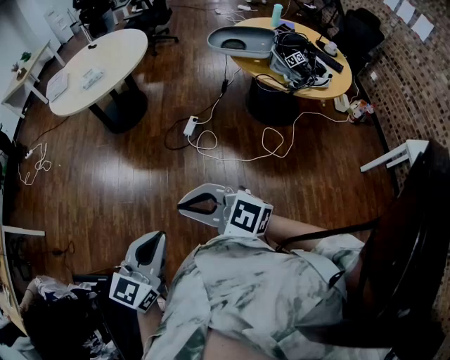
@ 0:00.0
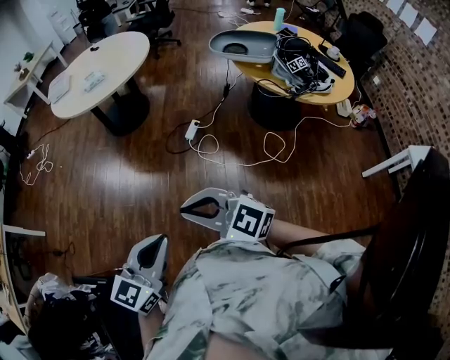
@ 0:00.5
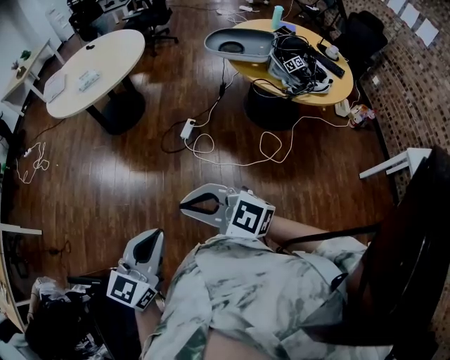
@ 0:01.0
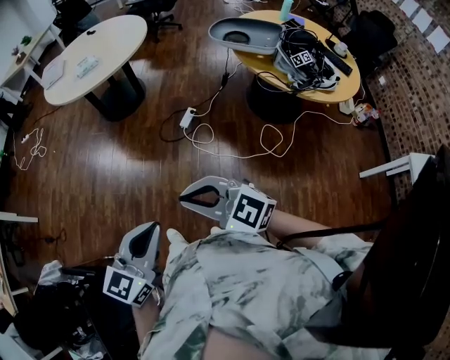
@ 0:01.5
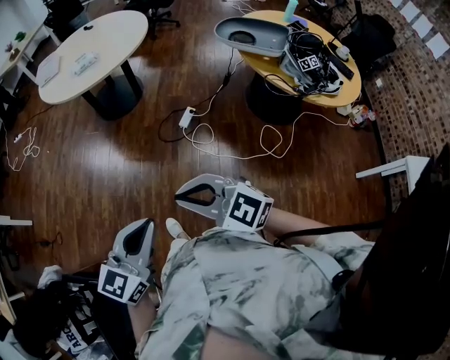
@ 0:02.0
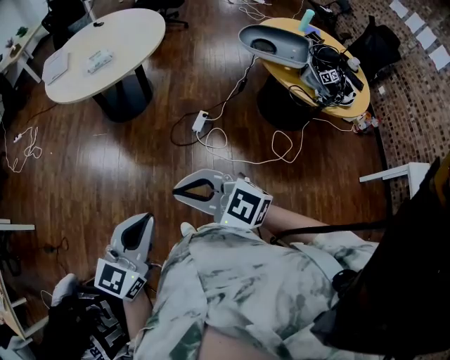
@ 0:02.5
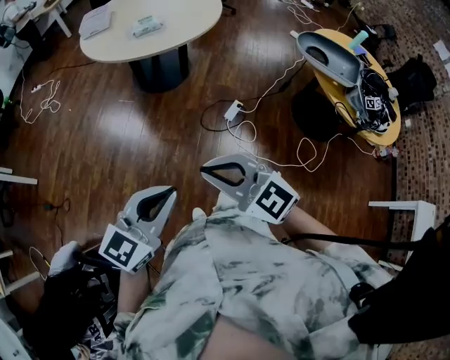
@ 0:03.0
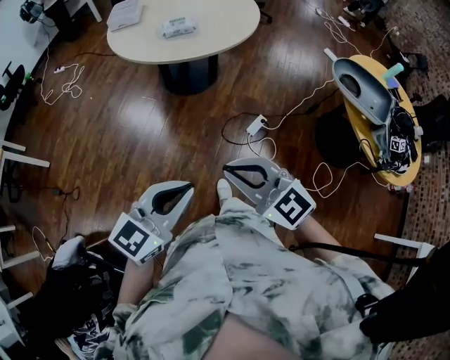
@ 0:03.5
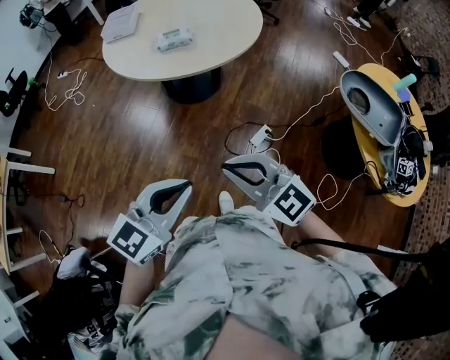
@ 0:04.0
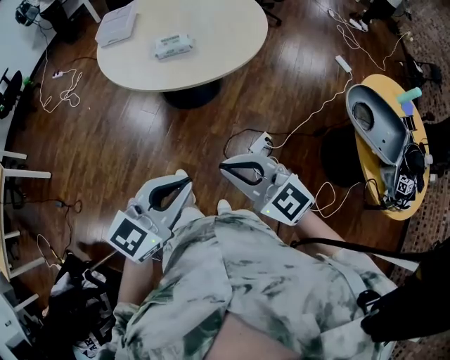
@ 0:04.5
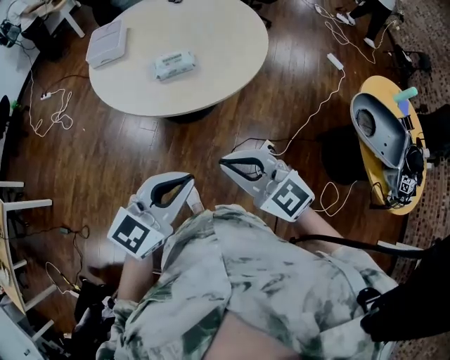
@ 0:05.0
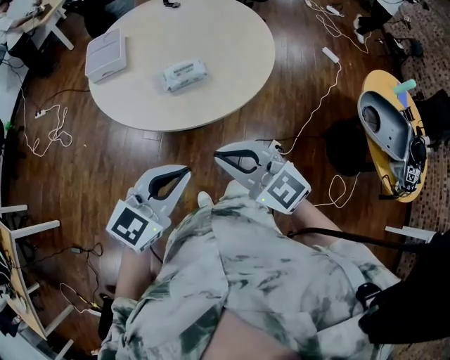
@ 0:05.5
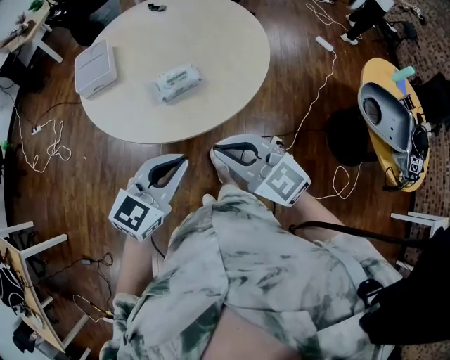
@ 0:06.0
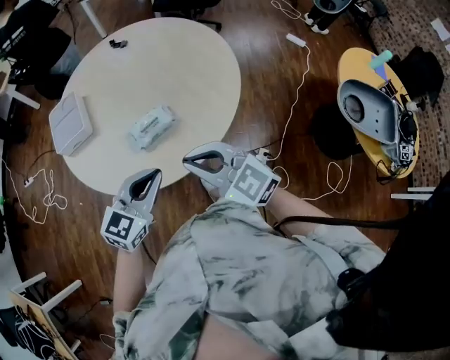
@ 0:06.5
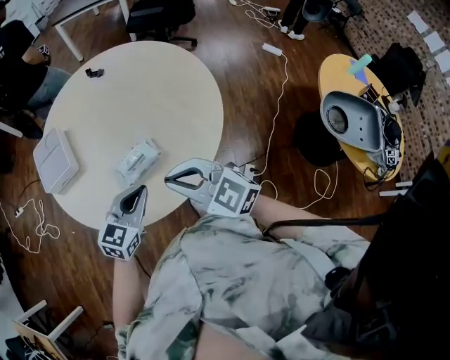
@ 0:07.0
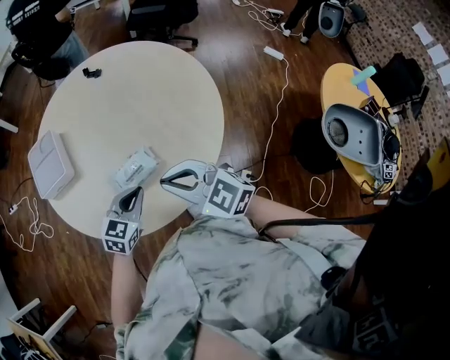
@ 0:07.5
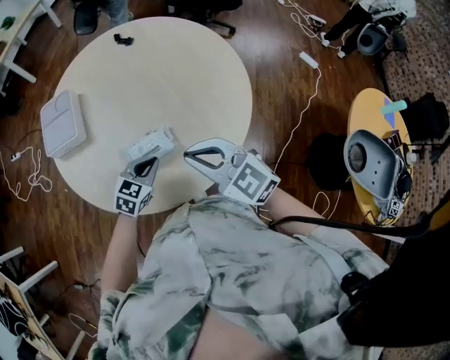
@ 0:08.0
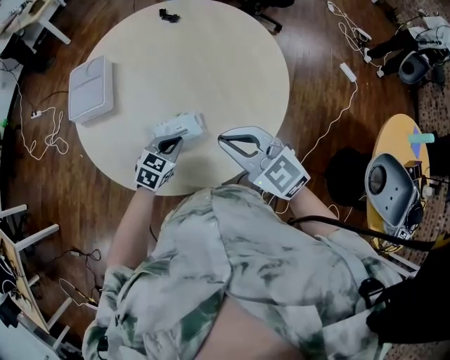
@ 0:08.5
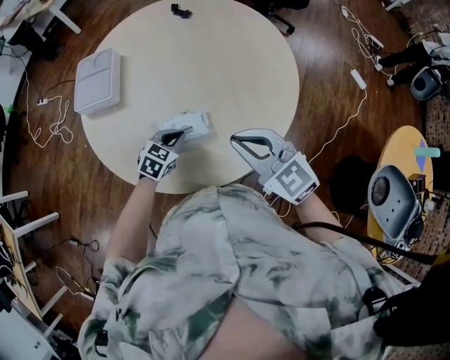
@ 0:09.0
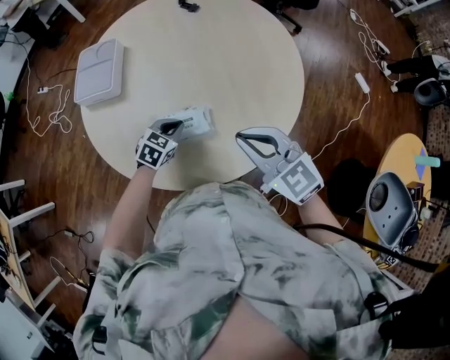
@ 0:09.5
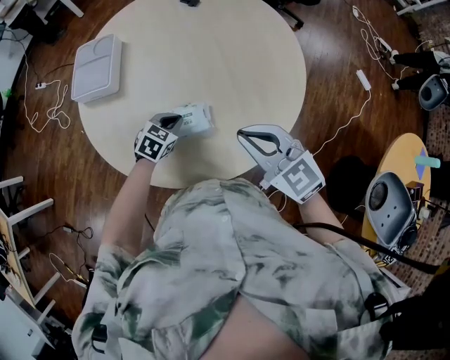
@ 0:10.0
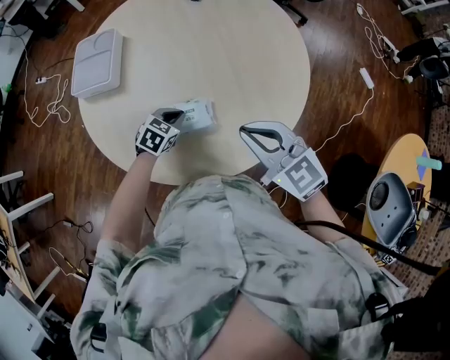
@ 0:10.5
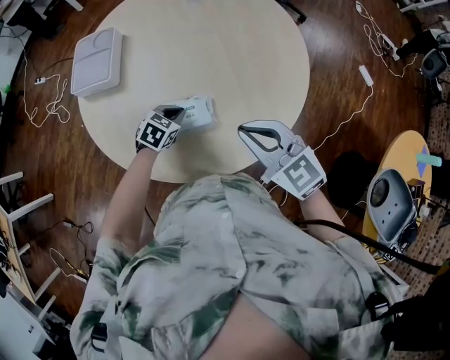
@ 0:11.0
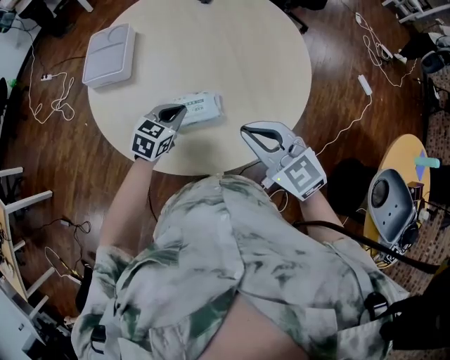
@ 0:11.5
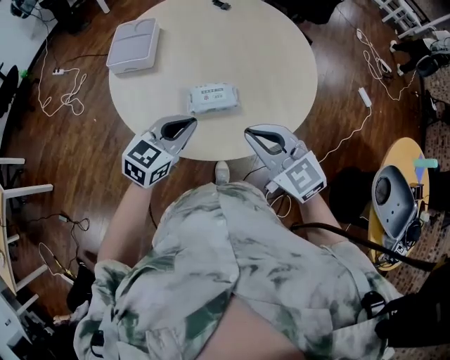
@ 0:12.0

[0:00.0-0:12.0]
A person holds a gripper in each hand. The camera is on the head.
0:00.0 to 0:02.0: Both grippers move forward, some 10 cm.
0:02.0 to 0:04.0: Both grippers travel together forward, roughly 35 cm.
0:04.0 to 0:06.0: The two grippers go about 40 cm forward and to the left.
0:06.0 to 0:08.0: The right gripper is displaced forward by roughly 25 cm. Meanwhile the left gripper travels forward and downward by roughly 35 cm, and turns by approximately 20 degrees.
0:08.0 to 0:10.0: The left gripper shifts some 10 cm forward and downward. The right gripper shifts by about 5 cm.
0:10.0 to 0:12.0: The left gripper shifts roughly 25 cm upward and backward, and turns by some 30 degrees. Meanwhile the right gripper goes about 15 cm backward and to the left.

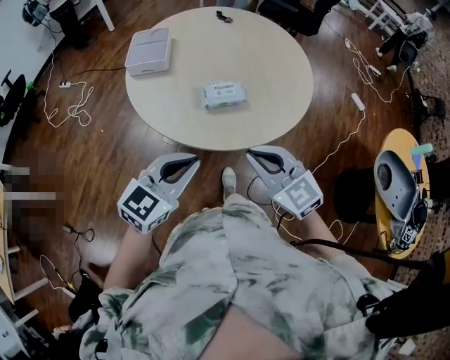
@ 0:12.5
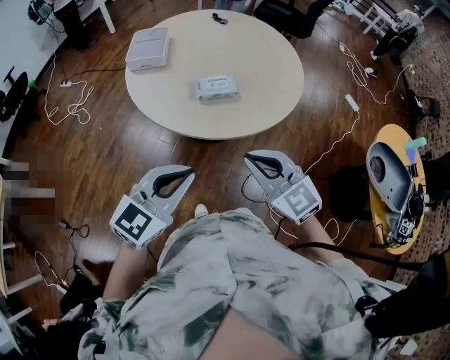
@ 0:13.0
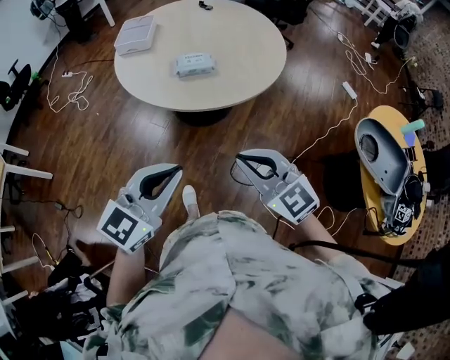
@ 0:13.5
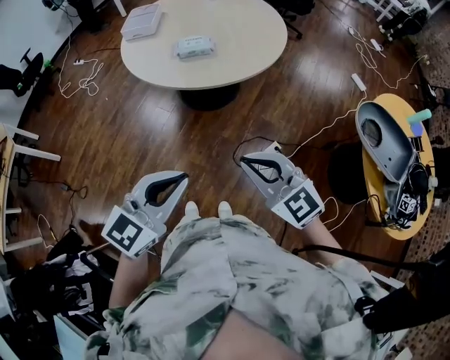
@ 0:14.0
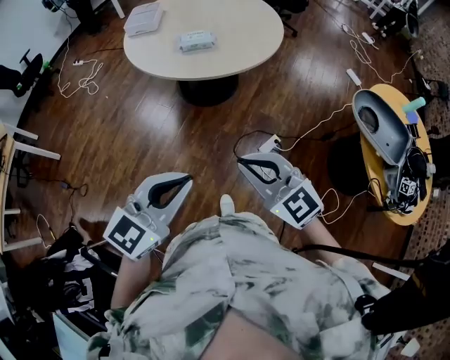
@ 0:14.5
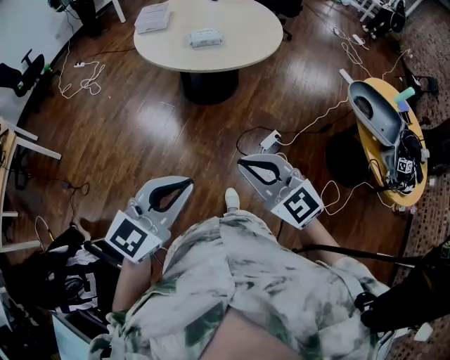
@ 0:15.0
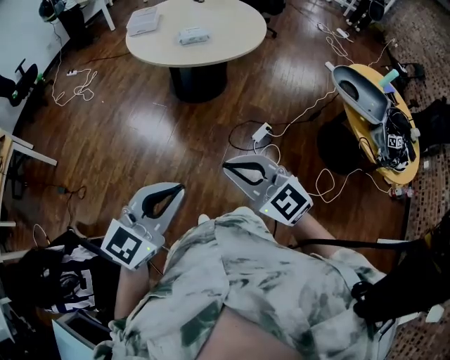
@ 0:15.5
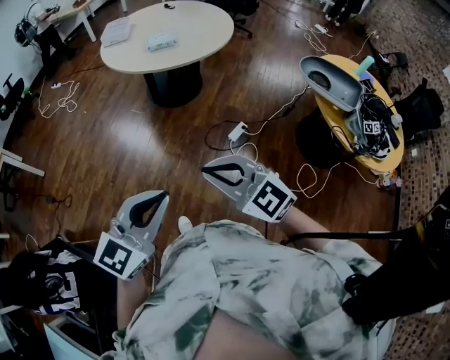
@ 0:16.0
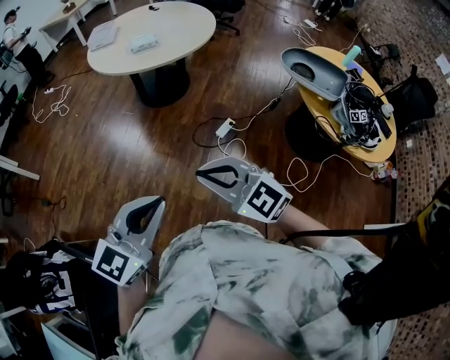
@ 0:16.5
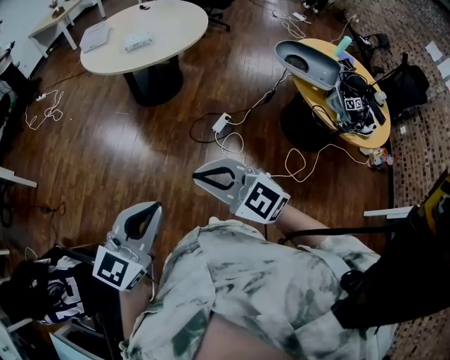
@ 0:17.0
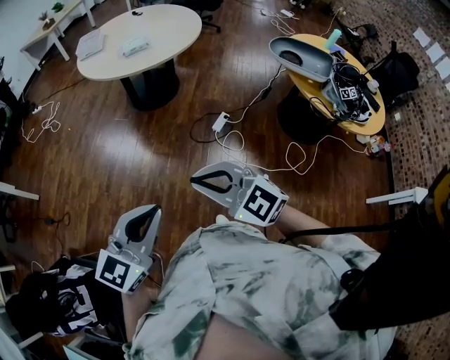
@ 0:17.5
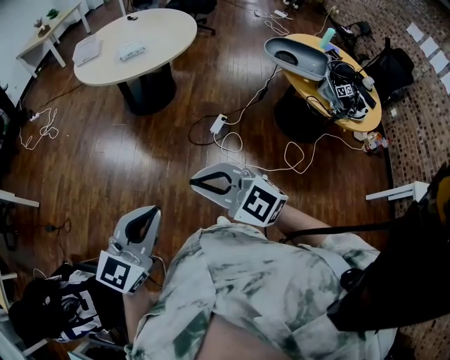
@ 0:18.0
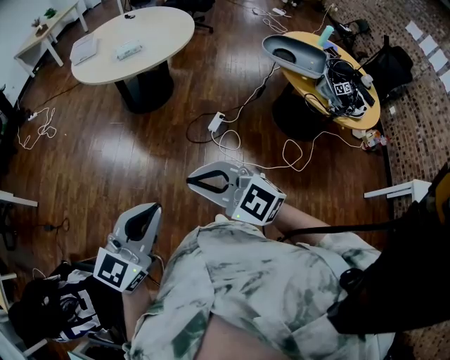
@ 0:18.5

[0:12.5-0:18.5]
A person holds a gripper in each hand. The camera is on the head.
0:12.5 to 0:14.5: The left gripper heads backward and to the right, covering some 40 cm. Meanwhile the right gripper heads backward, covering some 35 cm.
0:14.5 to 0:16.5: The two grippers go roughly 30 cm backward.
0:16.5 to 0:18.5: Both grippers travel together to the left, about 10 cm.

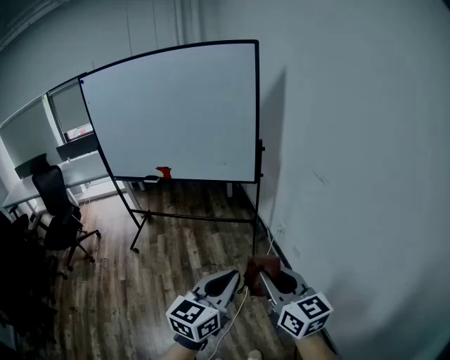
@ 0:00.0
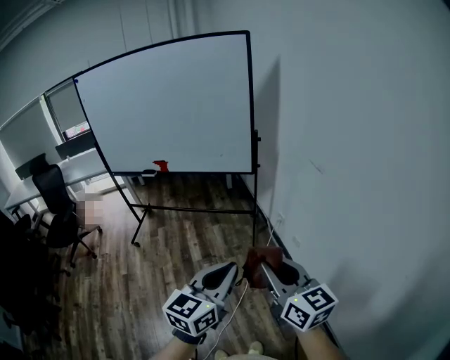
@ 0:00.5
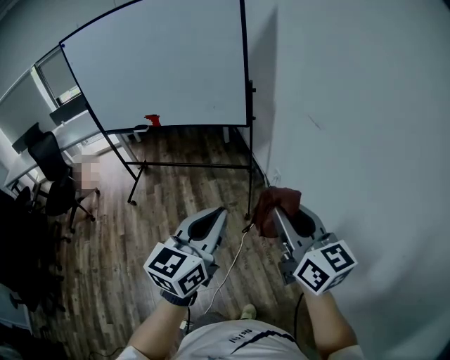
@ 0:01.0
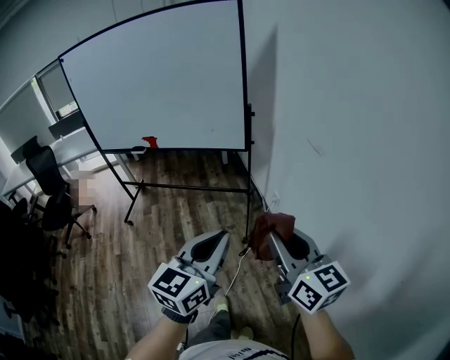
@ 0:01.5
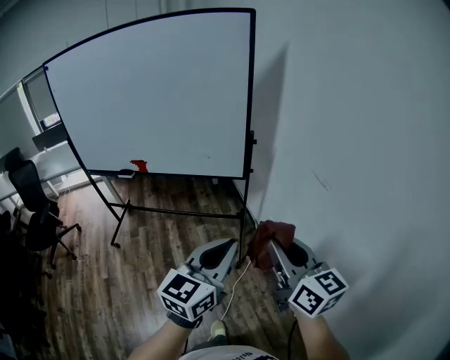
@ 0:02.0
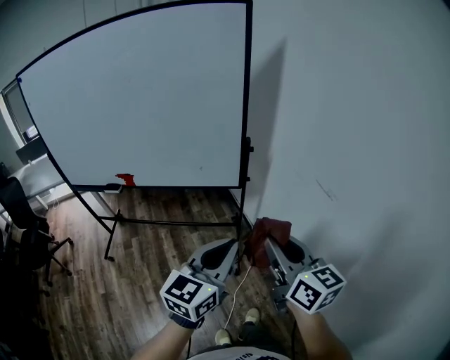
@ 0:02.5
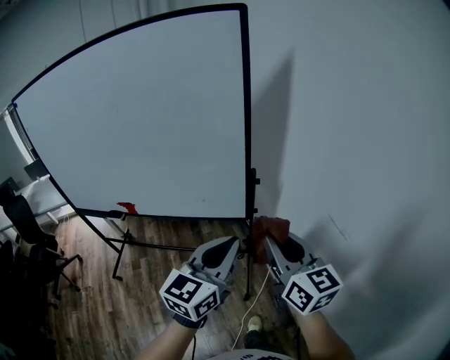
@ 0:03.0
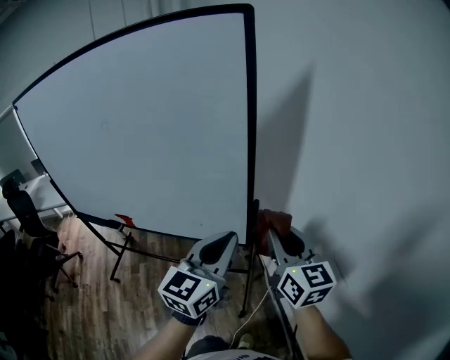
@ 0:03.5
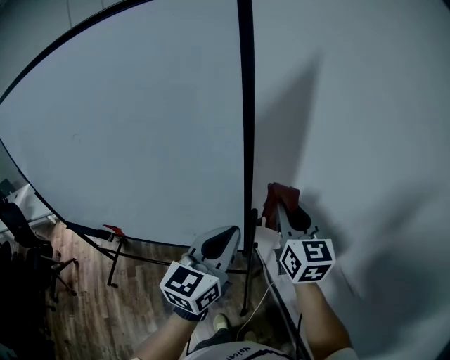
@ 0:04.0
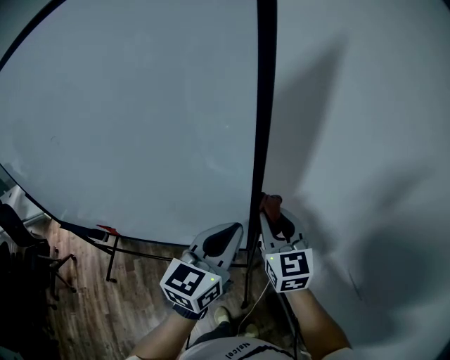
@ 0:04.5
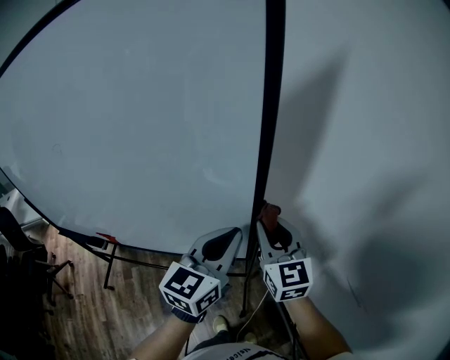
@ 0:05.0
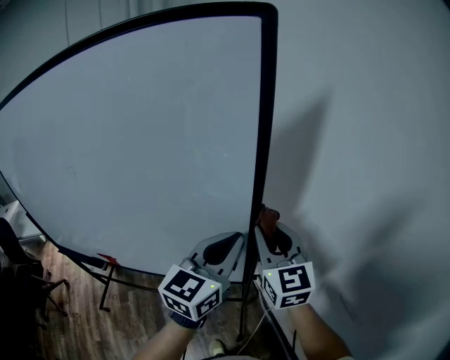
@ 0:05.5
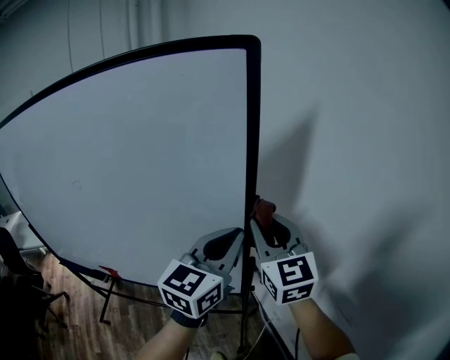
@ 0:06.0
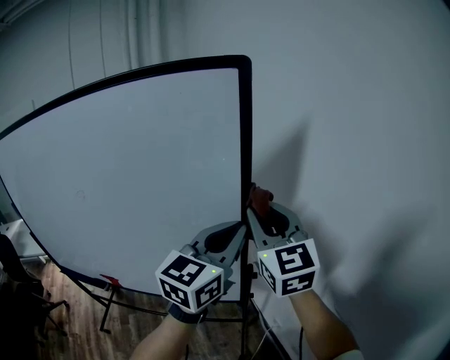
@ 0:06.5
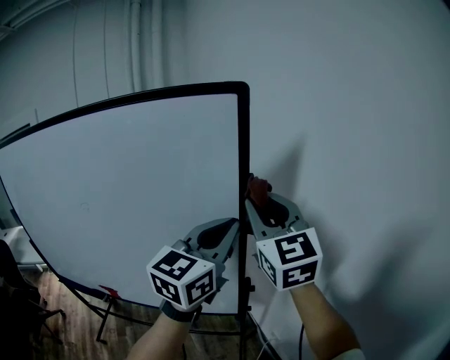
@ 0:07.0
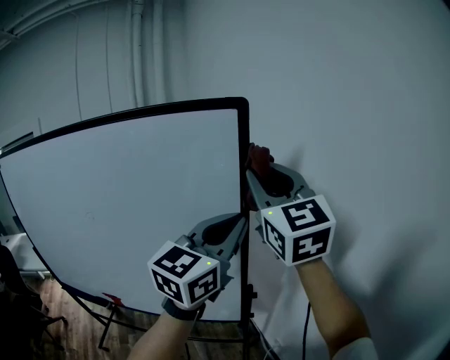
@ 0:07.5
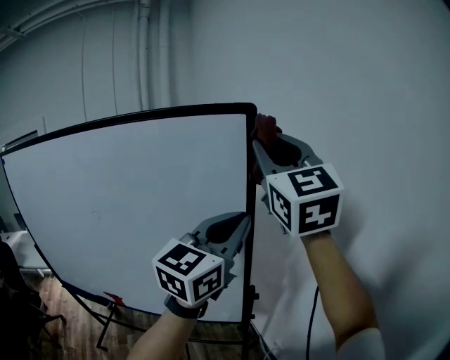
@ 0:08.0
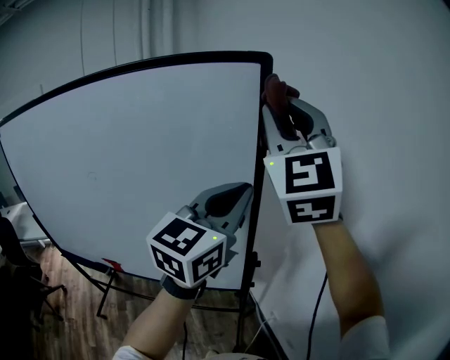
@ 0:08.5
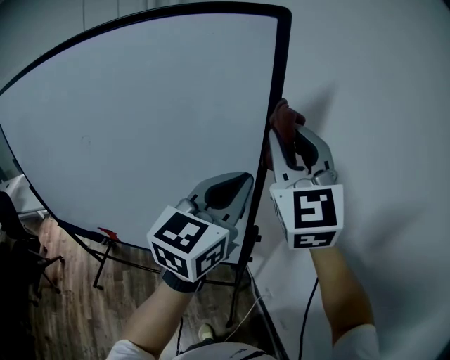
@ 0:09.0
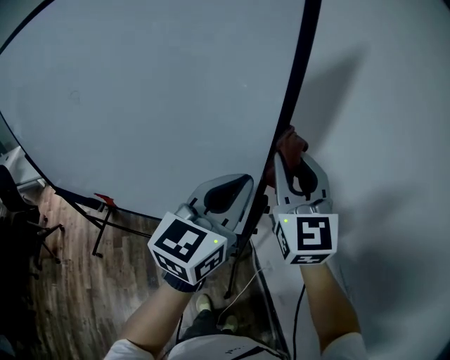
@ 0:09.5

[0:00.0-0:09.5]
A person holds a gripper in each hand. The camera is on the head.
0:00.0 to 0:02.0: The grippers both shift forward by roughly 20 cm.
0:02.0 to 0:04.0: Both grippers are carried forward, about 50 cm. The right gripper swivels some 20 degrees.
0:04.0 to 0:05.5: The left gripper goes some 5 cm forward. Meanwhile the right gripper is displaced to the left by roughly 10 cm, and moves about 5 cm downward and comes back.
0:05.5 to 0:07.5: The left gripper travels upward by about 20 cm, while the right gripper moves upward, some 30 cm.
0:07.5 to 0:09.5: Both grippers move downward, roughly 20 cm.
